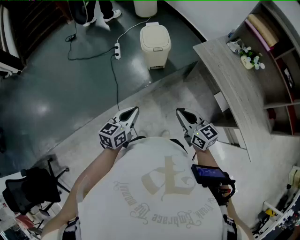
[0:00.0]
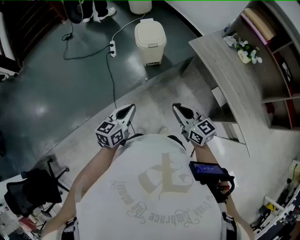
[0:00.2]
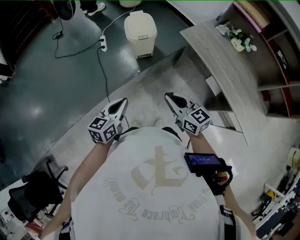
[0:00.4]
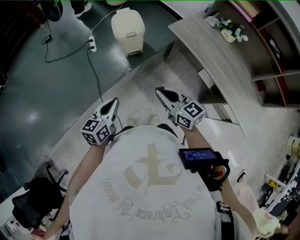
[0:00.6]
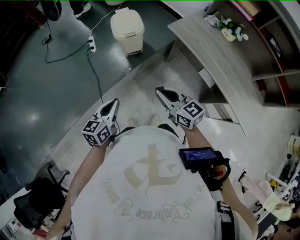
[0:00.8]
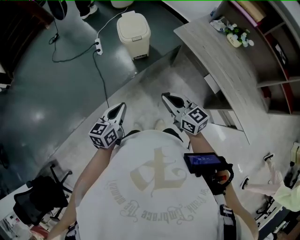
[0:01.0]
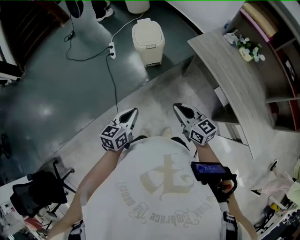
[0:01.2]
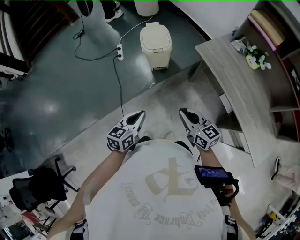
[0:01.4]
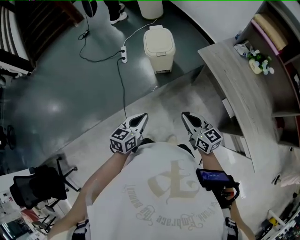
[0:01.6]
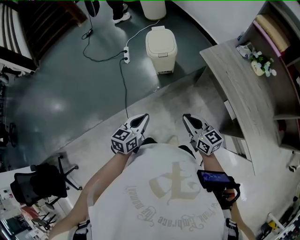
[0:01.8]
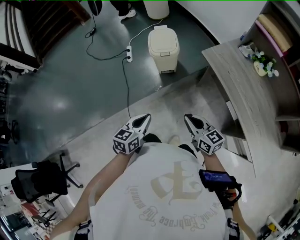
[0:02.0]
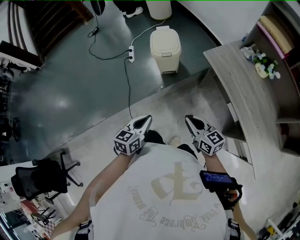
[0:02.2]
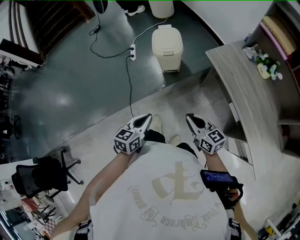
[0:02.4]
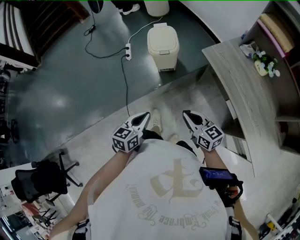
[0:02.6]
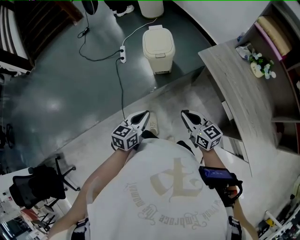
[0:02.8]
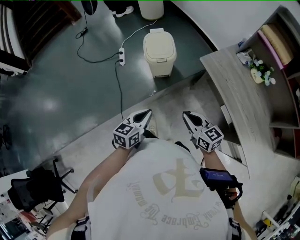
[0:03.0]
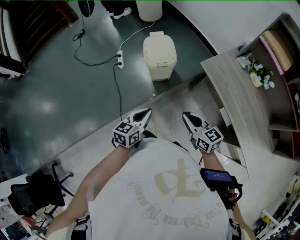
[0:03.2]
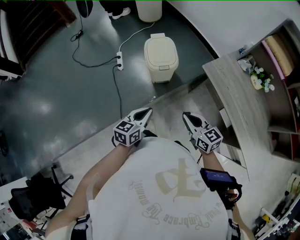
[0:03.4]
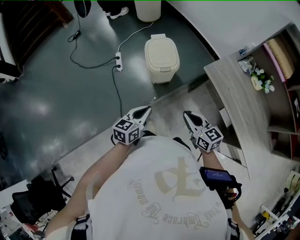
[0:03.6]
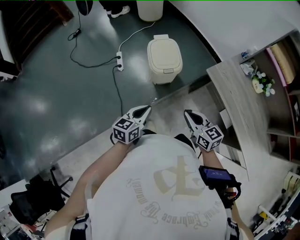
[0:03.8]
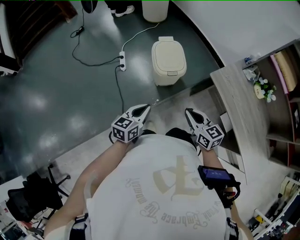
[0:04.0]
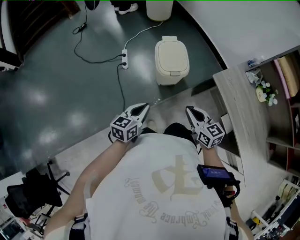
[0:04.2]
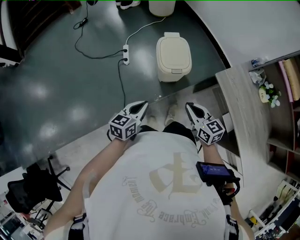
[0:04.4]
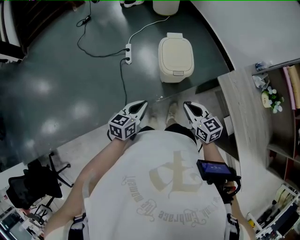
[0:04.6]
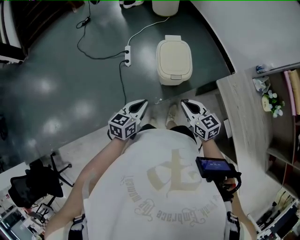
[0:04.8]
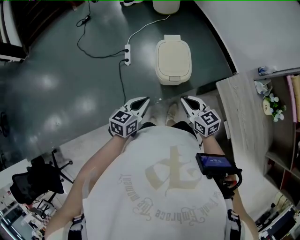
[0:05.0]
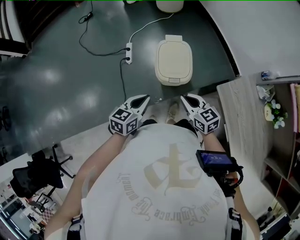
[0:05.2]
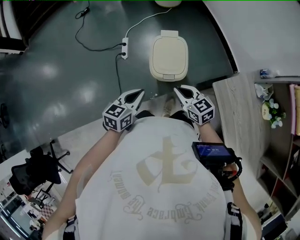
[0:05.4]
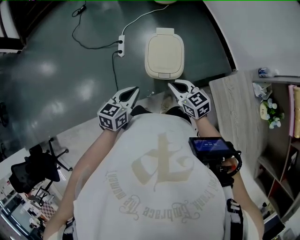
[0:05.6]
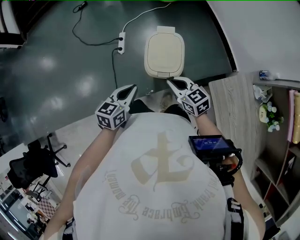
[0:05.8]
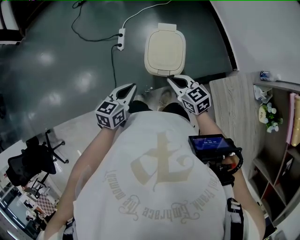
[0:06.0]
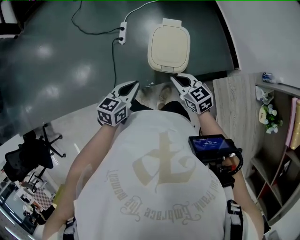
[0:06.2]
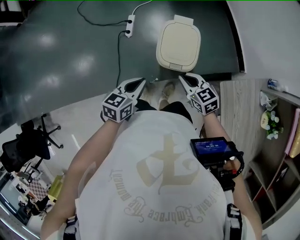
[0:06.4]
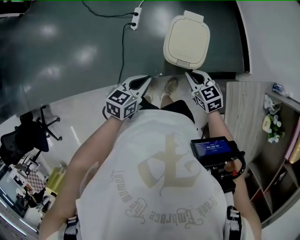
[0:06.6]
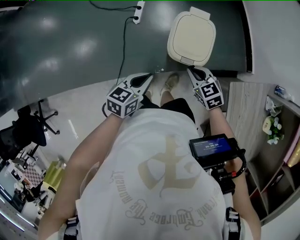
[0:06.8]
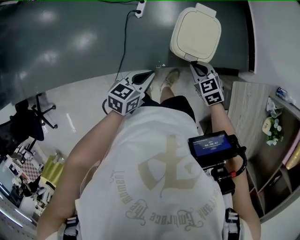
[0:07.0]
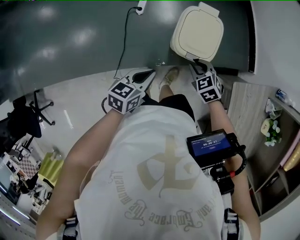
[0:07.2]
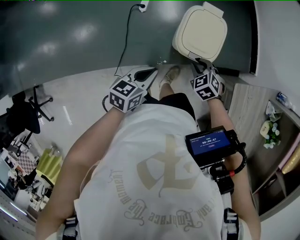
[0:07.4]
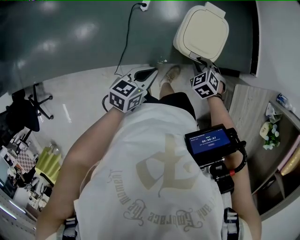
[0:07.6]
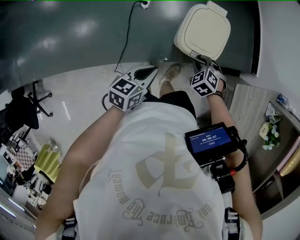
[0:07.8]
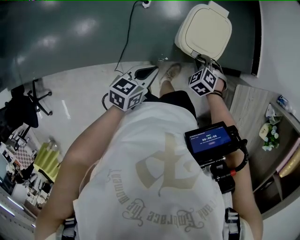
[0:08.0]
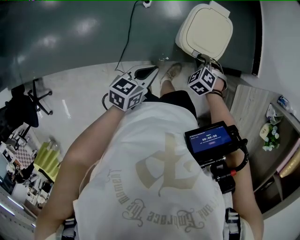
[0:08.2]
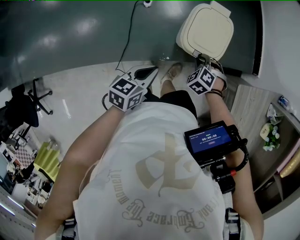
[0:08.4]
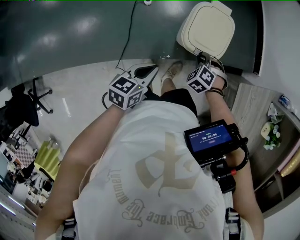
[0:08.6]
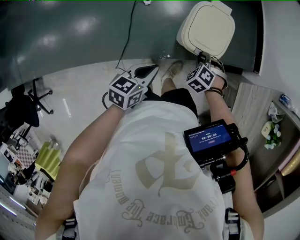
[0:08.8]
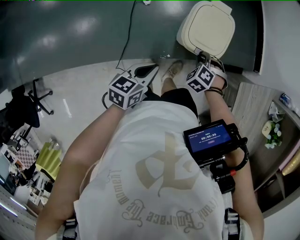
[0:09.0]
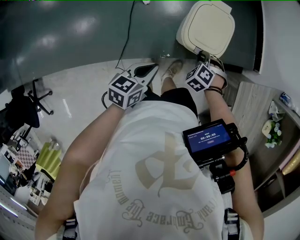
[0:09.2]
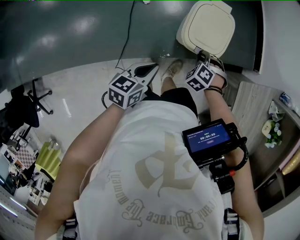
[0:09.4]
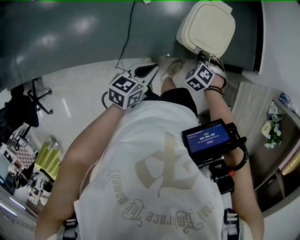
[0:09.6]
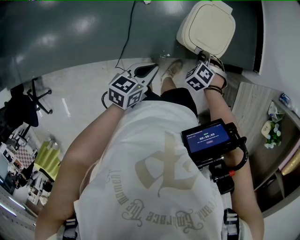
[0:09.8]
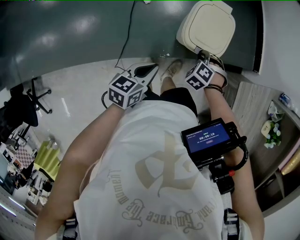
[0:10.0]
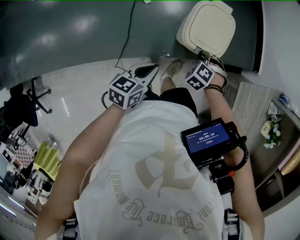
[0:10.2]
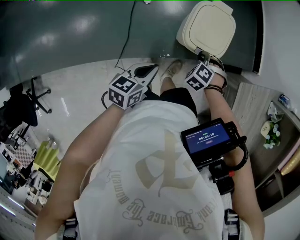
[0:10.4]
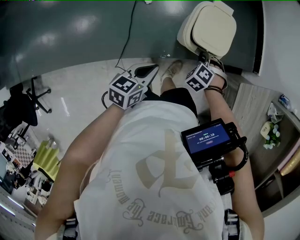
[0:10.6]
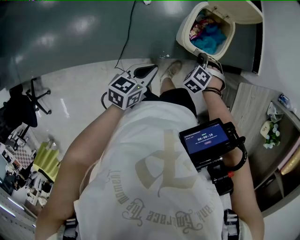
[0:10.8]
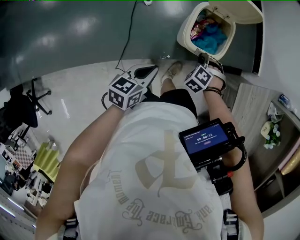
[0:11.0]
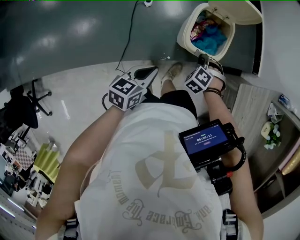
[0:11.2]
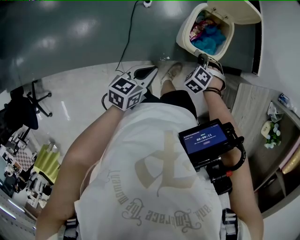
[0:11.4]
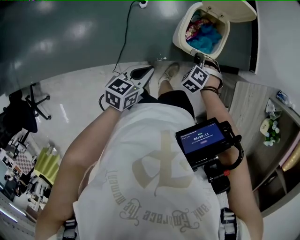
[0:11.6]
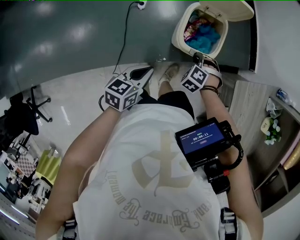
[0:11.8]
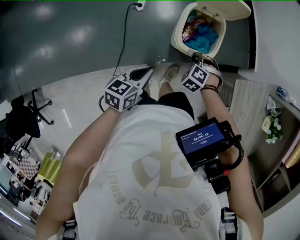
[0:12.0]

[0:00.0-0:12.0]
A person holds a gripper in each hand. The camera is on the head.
0:00.0 to 0:01.6: Both grippers travel together to the right, some 5 cm.
0:01.6 to 0:03.0: Both grippers move forward, roughly 10 cm.
0:03.0 to 0:04.4: Both grippers travel together forward and to the left, about 20 cm.
0:04.4 to 0:06.0: The right gripper shifts some 20 cm forward, and swivels roughly 20 degrees. Meanwhile the left gripper is displaced forward and to the right by approximately 20 cm.
0:06.0 to 0:07.6: The right gripper moves downward, roughly 15 cm, and tilts its fingers some 40 degrees downward, while the left gripper travels to the left and downward by approximately 10 cm.
0:07.6 to 0:09.0: The grippers move only a little.
0:09.0 to 0:12.0: The grippers move only a little.

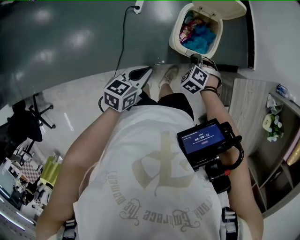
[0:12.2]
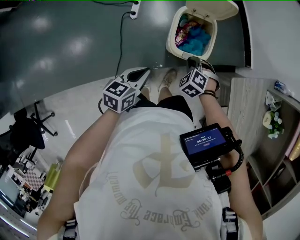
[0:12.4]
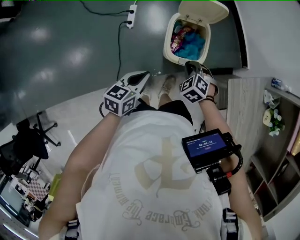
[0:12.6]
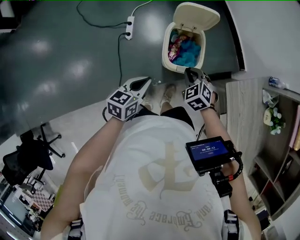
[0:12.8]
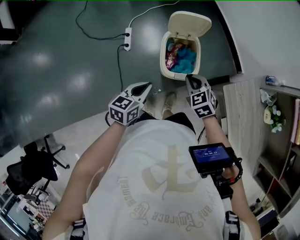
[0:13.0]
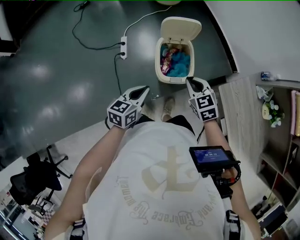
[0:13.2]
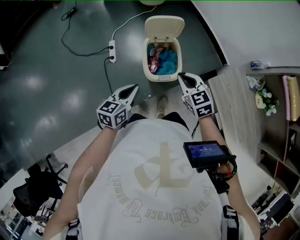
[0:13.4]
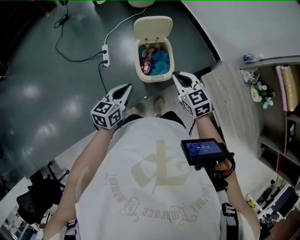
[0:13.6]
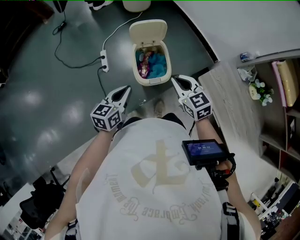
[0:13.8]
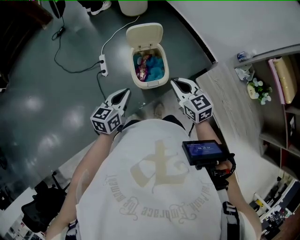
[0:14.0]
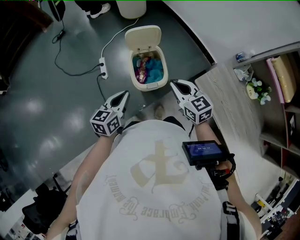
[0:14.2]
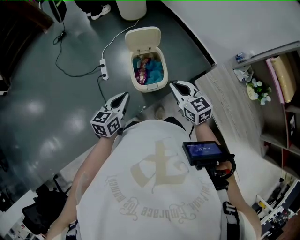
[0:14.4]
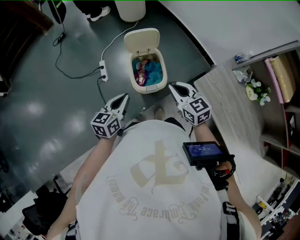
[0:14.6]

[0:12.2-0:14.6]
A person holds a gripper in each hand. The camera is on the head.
0:12.2 to 0:13.4: The right gripper shifts roughly 20 cm upward, and rotates around the line of its fingers by some 50 degrees, clockwise from behind. Meanwhile the left gripper goes roughly 10 cm upward and forward.
0:13.4 to 0:14.6: The right gripper moves approximately 5 cm.

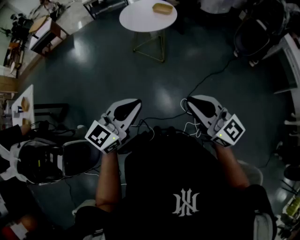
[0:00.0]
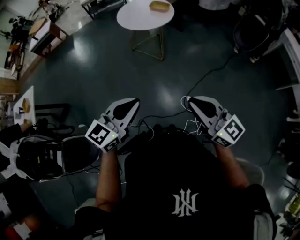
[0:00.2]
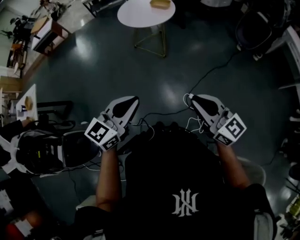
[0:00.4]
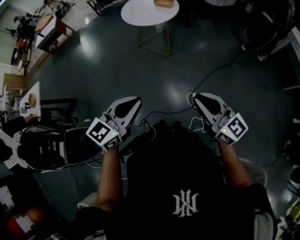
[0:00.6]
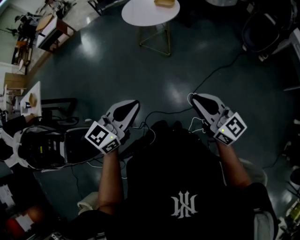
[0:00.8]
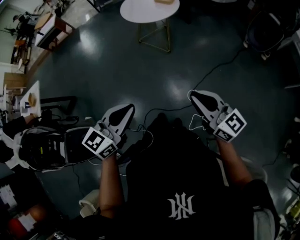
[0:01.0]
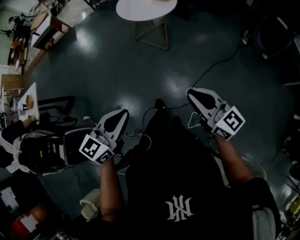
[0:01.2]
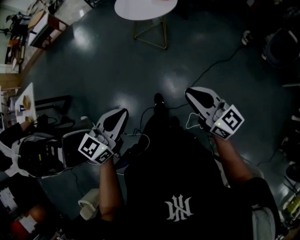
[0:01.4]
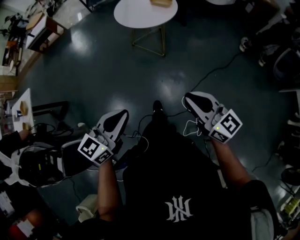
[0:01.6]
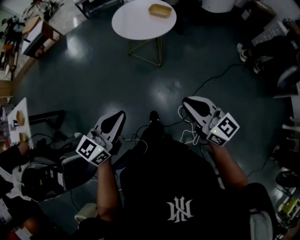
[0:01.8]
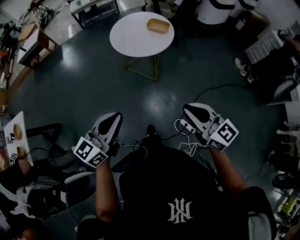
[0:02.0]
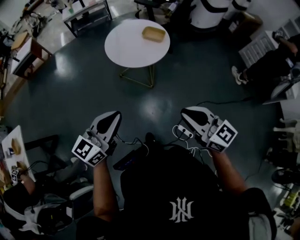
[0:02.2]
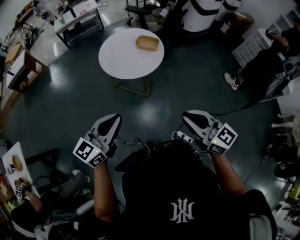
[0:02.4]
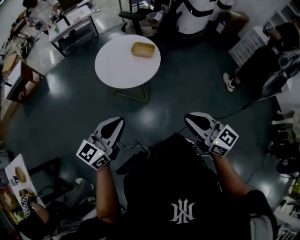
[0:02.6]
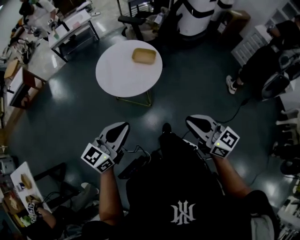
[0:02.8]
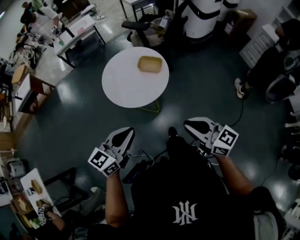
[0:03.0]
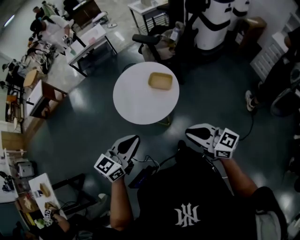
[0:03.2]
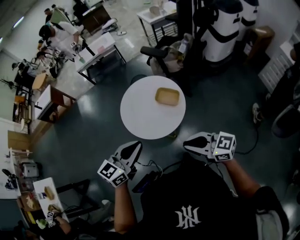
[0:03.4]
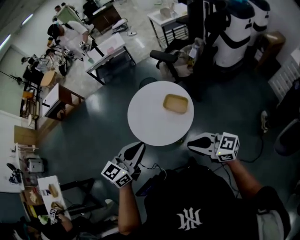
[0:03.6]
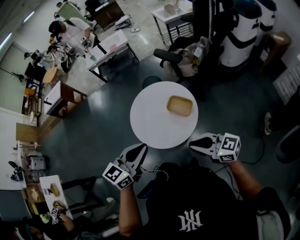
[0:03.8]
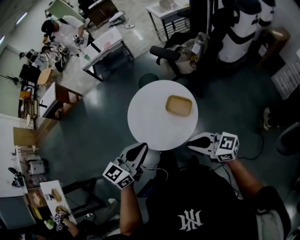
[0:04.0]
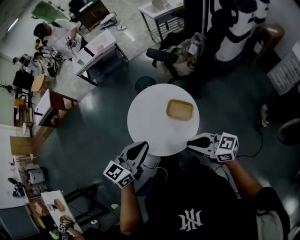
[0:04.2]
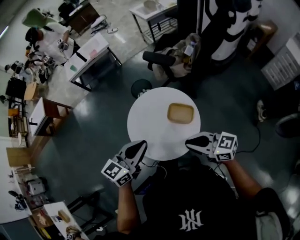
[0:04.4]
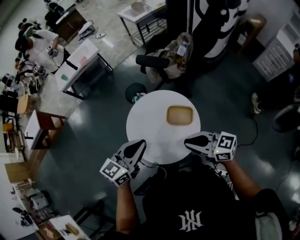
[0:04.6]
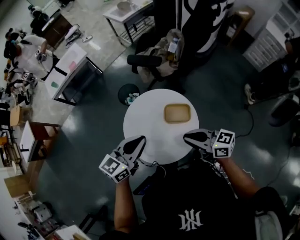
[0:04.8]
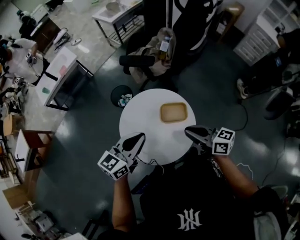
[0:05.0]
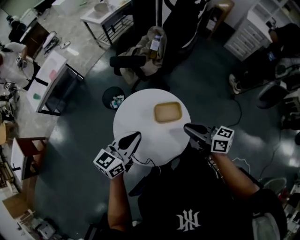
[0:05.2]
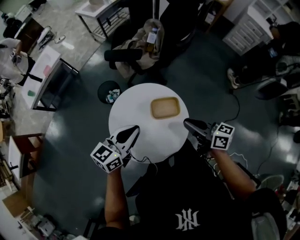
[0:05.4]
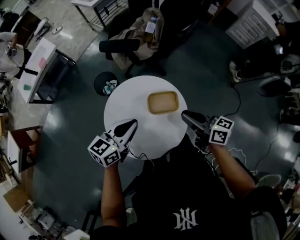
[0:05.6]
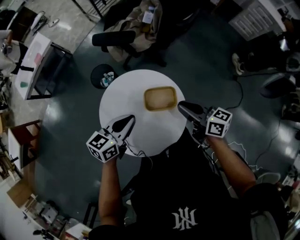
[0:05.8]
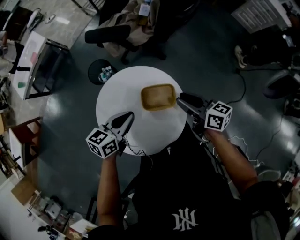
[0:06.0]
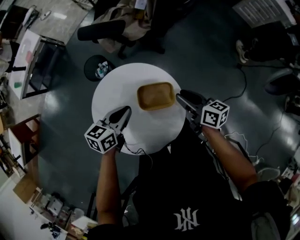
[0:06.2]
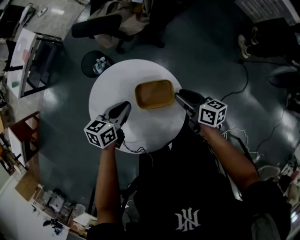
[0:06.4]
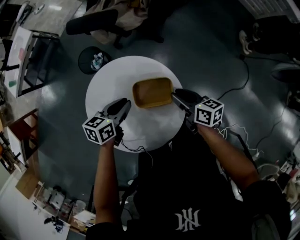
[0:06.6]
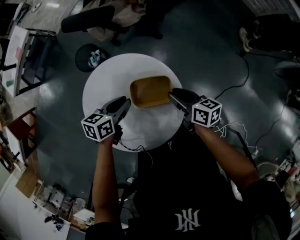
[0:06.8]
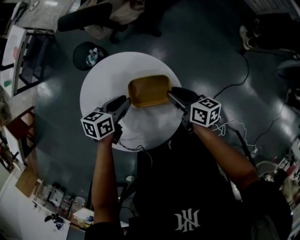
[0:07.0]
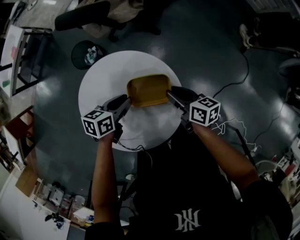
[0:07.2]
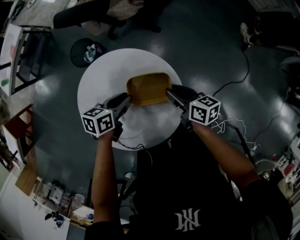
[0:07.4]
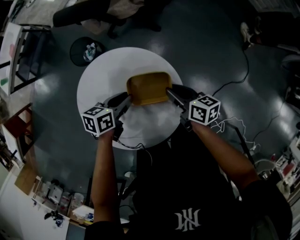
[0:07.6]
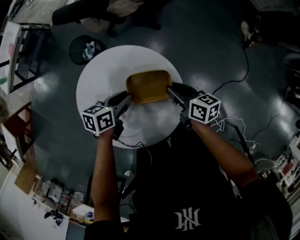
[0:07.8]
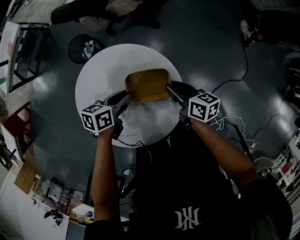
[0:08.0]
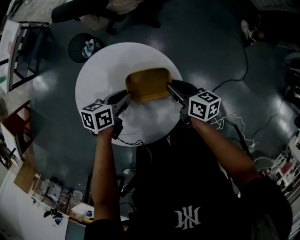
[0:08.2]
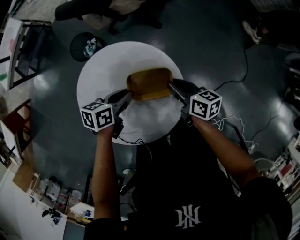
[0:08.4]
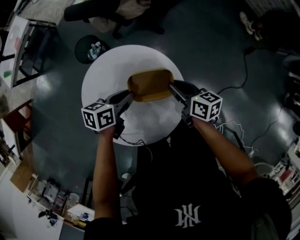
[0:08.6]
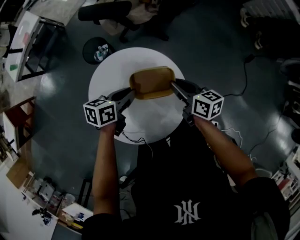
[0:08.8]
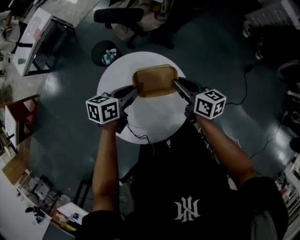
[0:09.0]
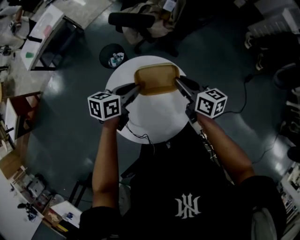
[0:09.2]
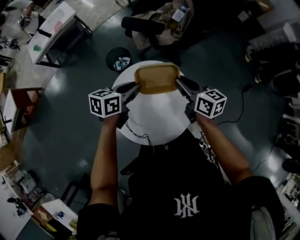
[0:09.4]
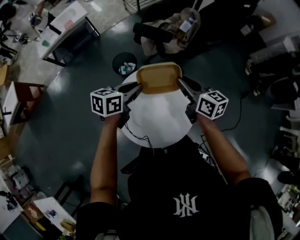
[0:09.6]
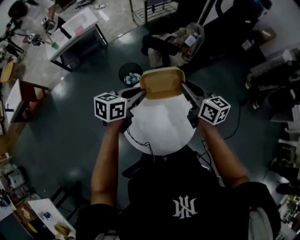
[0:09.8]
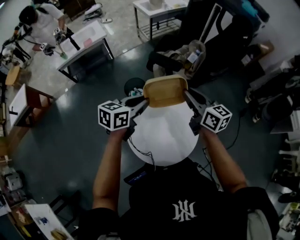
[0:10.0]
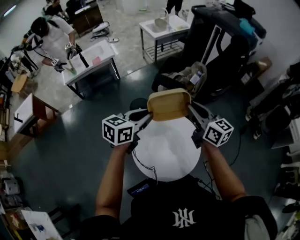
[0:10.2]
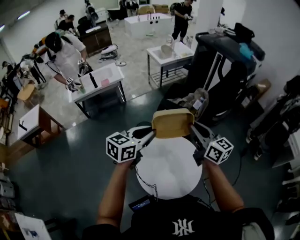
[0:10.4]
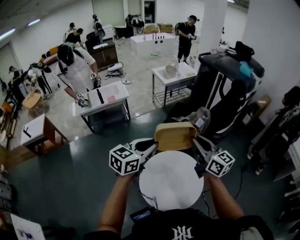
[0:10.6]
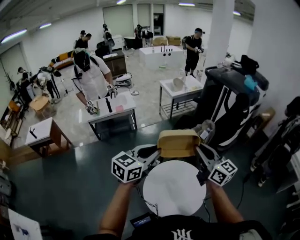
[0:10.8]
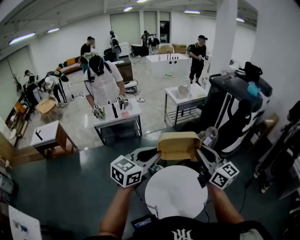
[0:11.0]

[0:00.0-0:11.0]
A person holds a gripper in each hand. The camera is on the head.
0:00.0 to 0:01.6: The left gripper goes backward and returns, some 5 cm each way, while the right gripper shifts approximately 10 cm downward and forward.
0:01.6 to 0:03.2: The pair of grippers is taken forward, approximately 40 cm.
0:03.2 to 0:04.8: The right gripper shifts by roughly 30 cm, and turns by about 20 degrees. Meanwhile the left gripper moves approximately 35 cm.
0:04.8 to 0:06.2: The right gripper moves downward, forward and to the right, some 25 cm, swivels some 40 degrees, and opens up; the left gripper heads downward and forward, covering some 25 cm, and rotates approximately 30 degrees.
0:06.2 to 0:07.8: The grippers both shift downward by roughly 10 cm. The left gripper rotates approximately 20 degrees.
0:07.8 to 0:09.4: The two grippers go roughly 20 cm upward and to the left. The right gripper rotates about 30 degrees, while the left gripper turns by some 20 degrees.
0:09.4 to 0:11.0: Both grippers travel together upward, approximately 35 cm. The left gripper changes its angle by about 50 degrees. Meanwhile the right gripper points its fingers roughly 30 degrees further upward.
